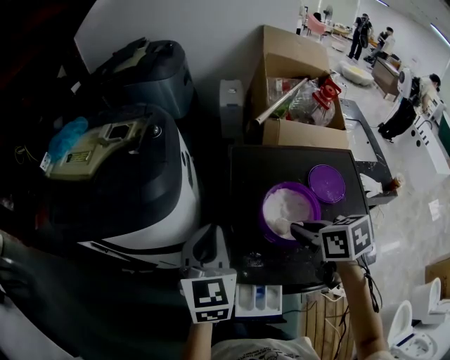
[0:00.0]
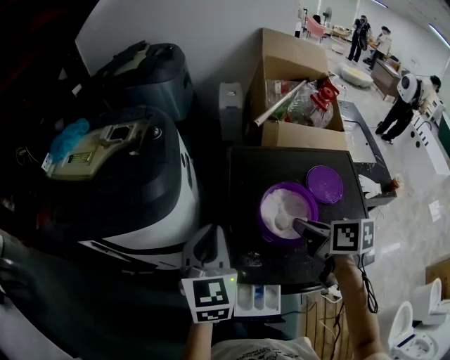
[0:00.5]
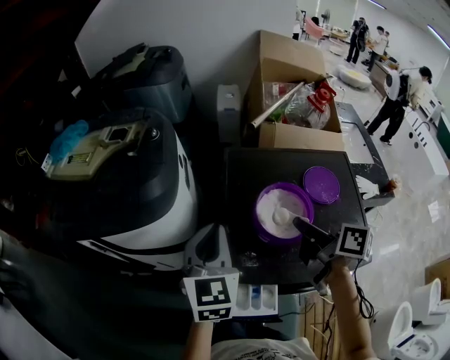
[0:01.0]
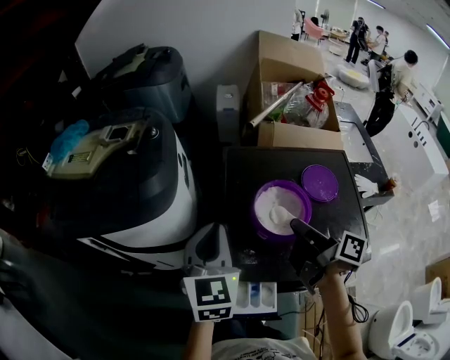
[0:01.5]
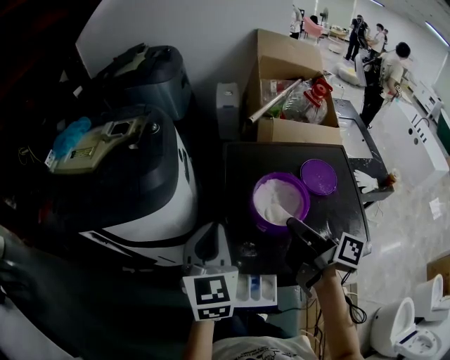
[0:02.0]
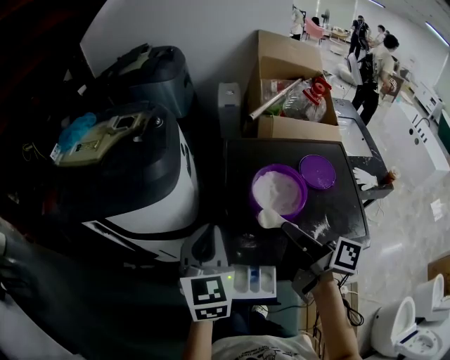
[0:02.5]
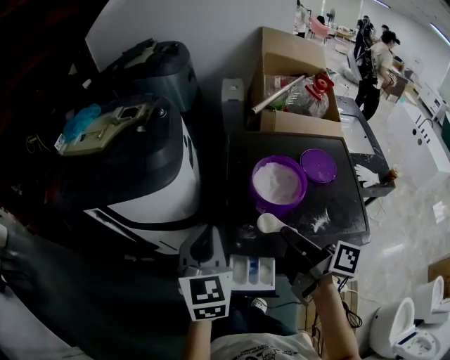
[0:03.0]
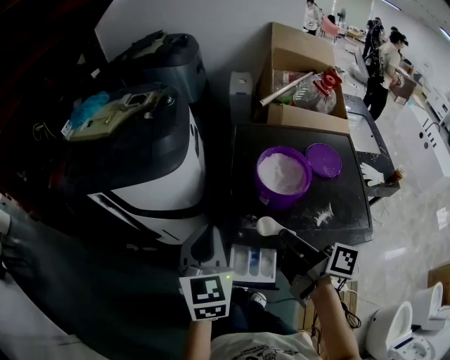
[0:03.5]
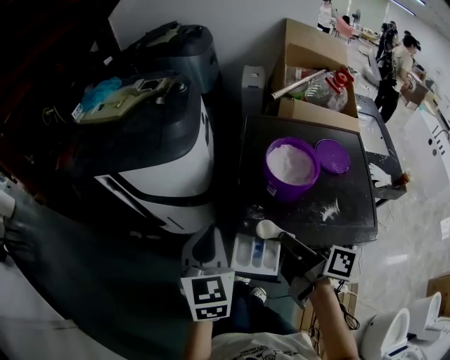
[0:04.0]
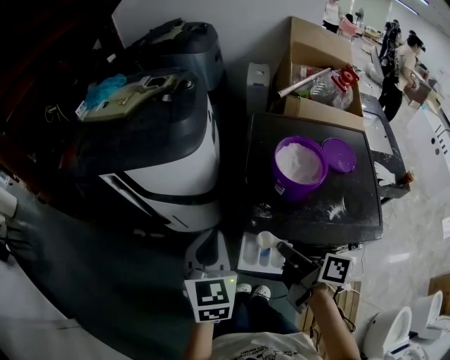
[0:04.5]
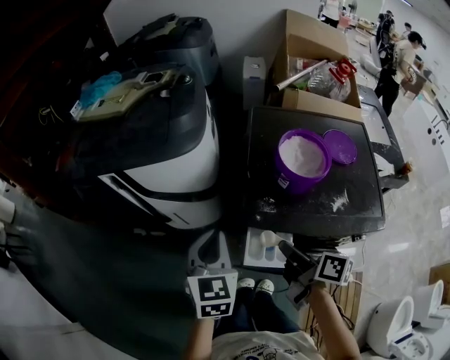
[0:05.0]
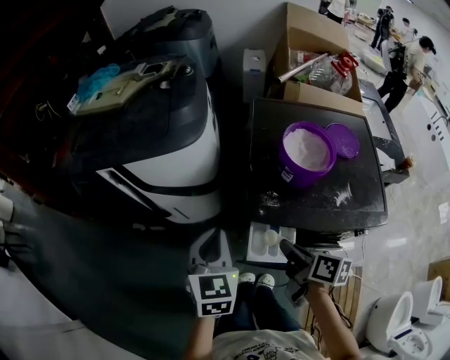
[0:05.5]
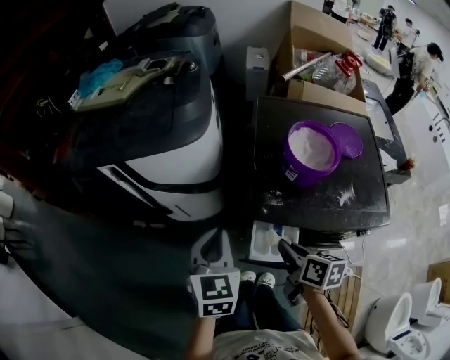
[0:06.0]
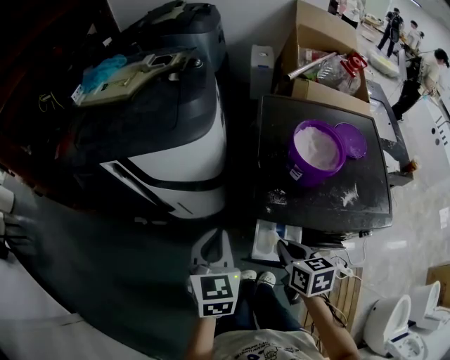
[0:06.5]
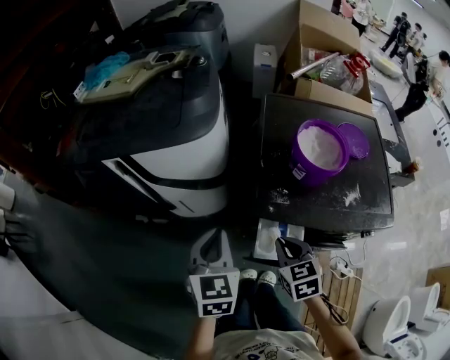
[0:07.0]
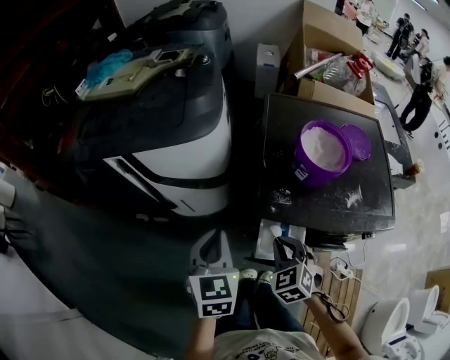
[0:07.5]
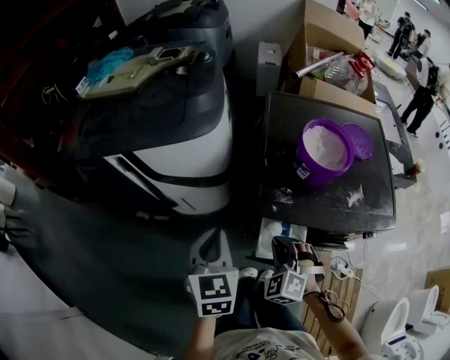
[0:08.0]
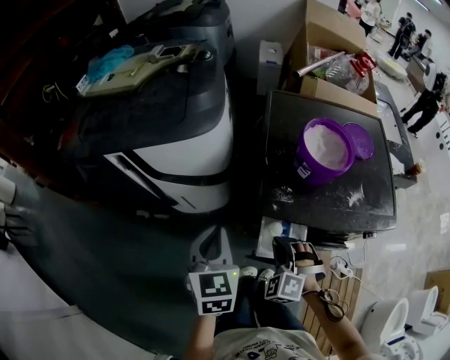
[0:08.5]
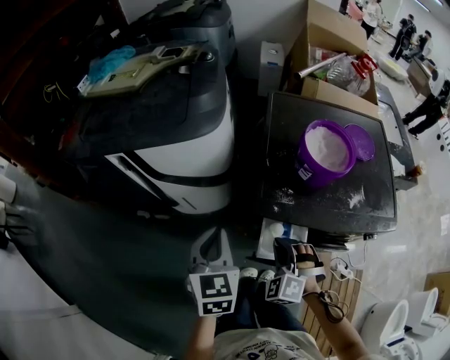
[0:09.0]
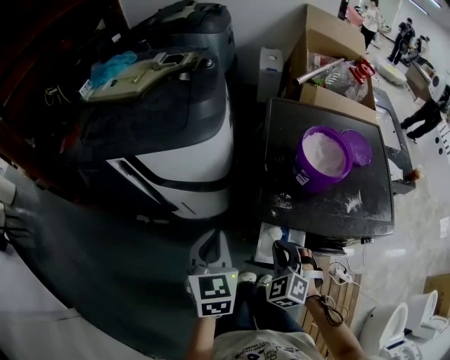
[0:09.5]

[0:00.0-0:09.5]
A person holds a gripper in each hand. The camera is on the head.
0:00.0 to 0:02.0: The right gripper ends up approximately 5 cm from where it was, and tips its fingers upward by approximately 40 degrees.
0:02.0 to 0:04.0: The right gripper goes some 15 cm backward, to the left and downward. The left gripper moves backward and to the left, roughly 15 cm.
0:04.0 to 0:05.5: The left gripper shifts approximately 5 cm downward, while the right gripper moves downward and to the left, about 10 cm, and changes its angle by approximately 20 degrees.
0:05.5 to 0:07.5: The right gripper travels downward by roughly 5 cm, and rotates around the line of its fingers by roughly 80 degrees, counterclockwise from behind.

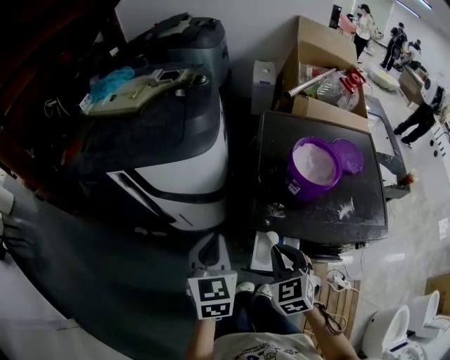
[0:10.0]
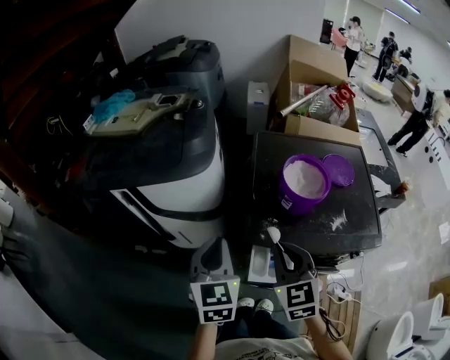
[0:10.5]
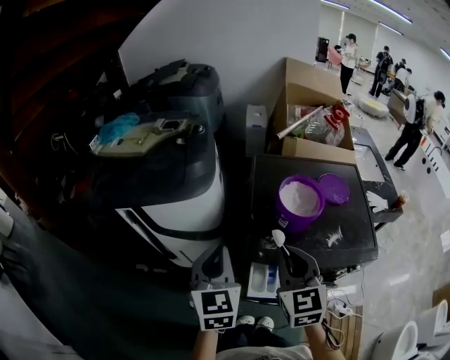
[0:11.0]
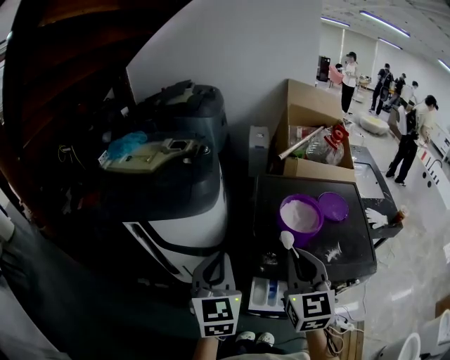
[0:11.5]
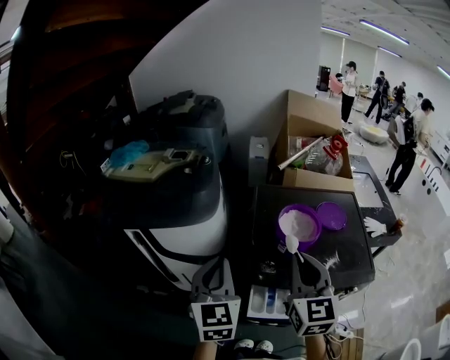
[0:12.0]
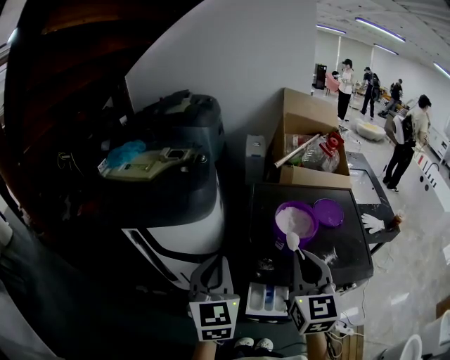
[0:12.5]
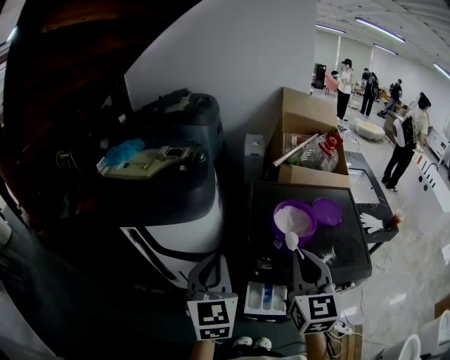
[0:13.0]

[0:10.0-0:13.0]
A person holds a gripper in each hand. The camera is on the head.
0:10.0 to 0:11.5: The right gripper shifts about 20 cm upward, and changes its angle by some 30 degrees, while the left gripper heads upward, covering some 10 cm.
0:11.5 to 0:13.0: The grippers make only small movements.

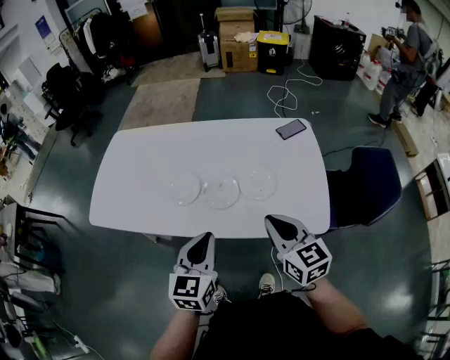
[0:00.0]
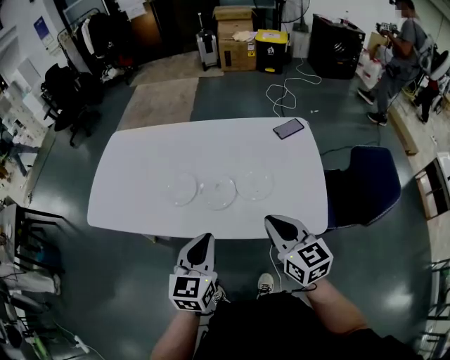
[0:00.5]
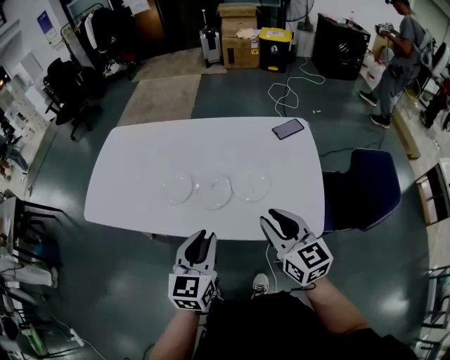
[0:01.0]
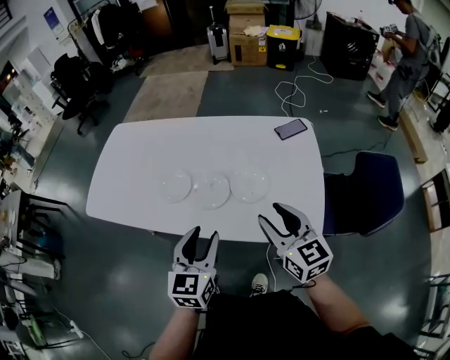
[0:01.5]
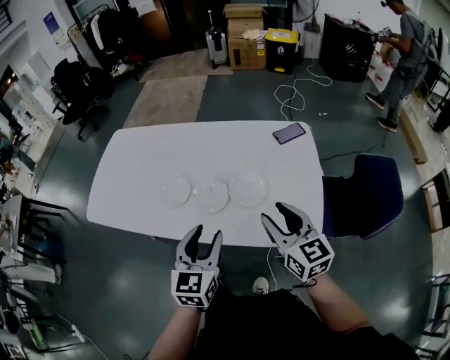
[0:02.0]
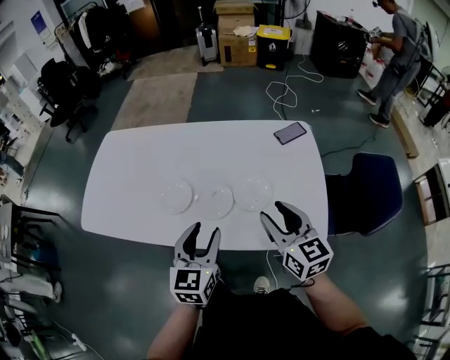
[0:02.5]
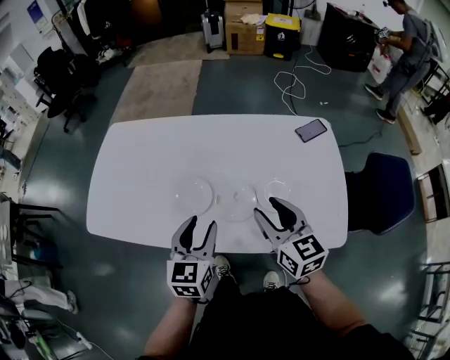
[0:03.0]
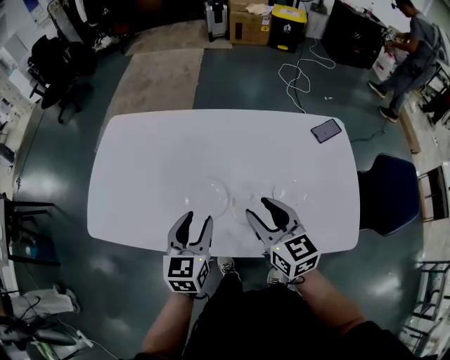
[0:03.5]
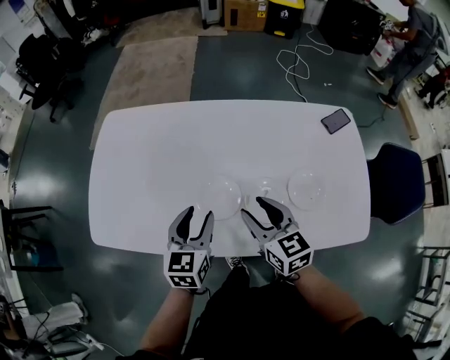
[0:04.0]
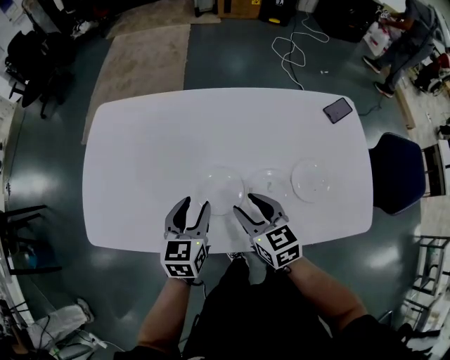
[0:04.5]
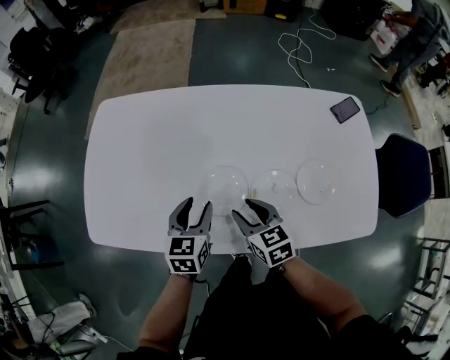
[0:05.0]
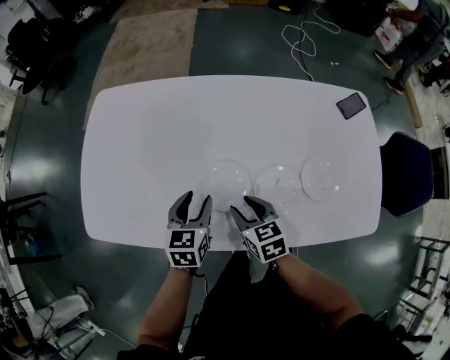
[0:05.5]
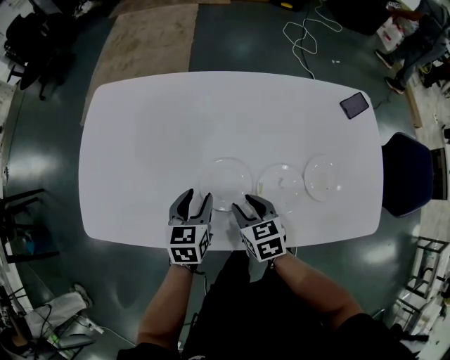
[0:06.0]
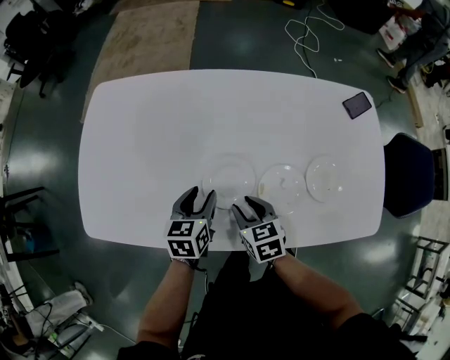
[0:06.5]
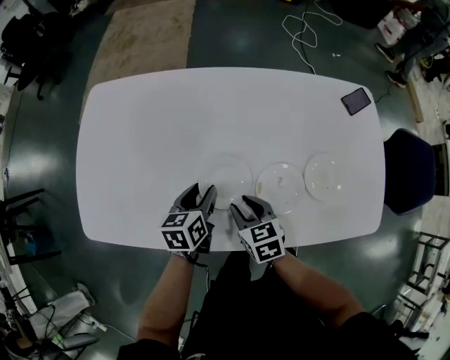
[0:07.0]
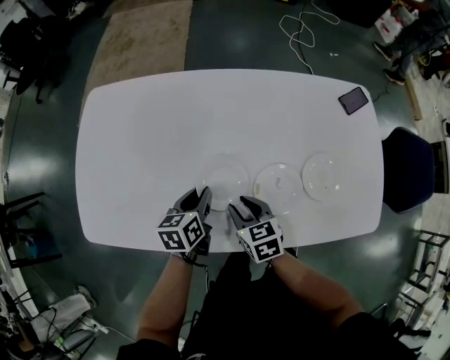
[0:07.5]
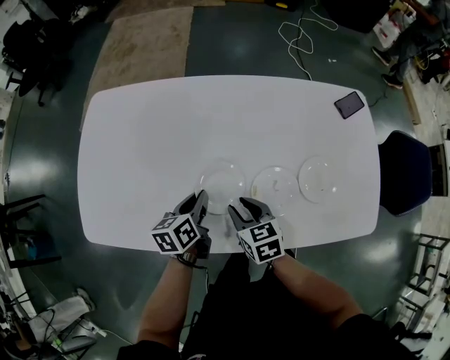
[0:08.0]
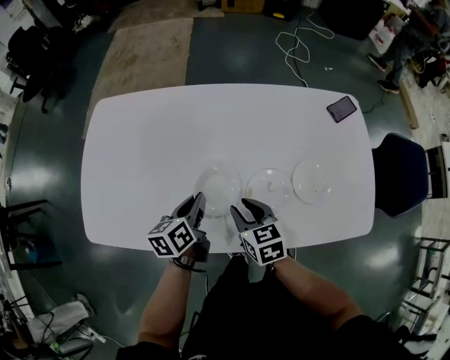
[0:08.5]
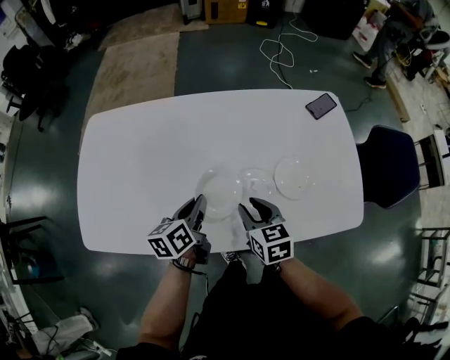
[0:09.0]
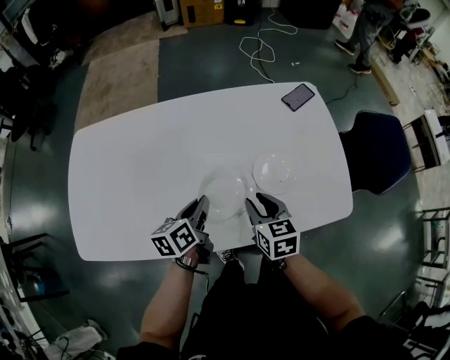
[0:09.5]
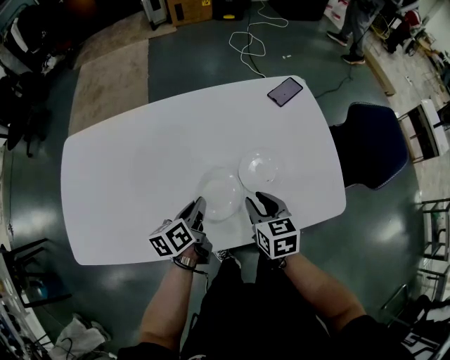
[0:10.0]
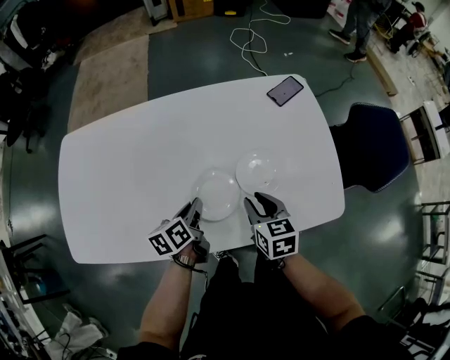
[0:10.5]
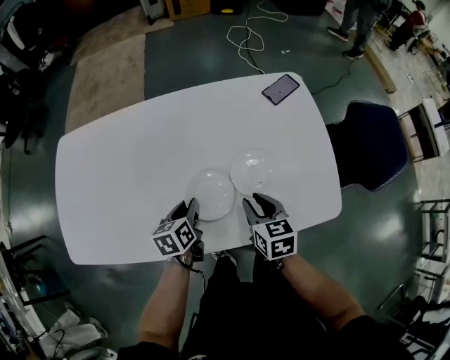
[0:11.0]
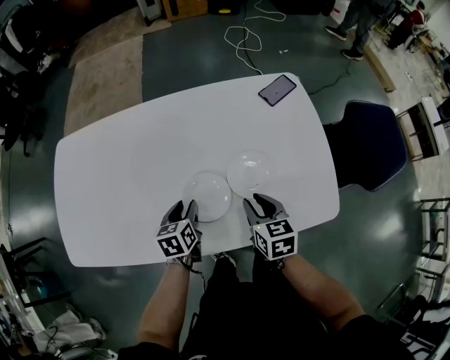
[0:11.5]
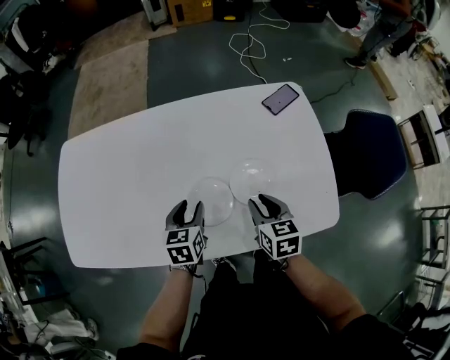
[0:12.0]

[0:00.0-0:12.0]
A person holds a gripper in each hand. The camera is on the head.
0:00.0 to 0:02.0: Both grippers move to the right, roughly 10 cm. The left gripper opens its fingers. Meanwhile the right gripper opens its fingers.
0:02.0 to 0:04.0: The two grippers go some 35 cm to the left and forward.
0:04.0 to 0:06.0: Both grippers move downward, some 15 cm. The right gripper turns by roughly 20 degrees.
0:06.0 to 0:08.0: The left gripper turns by roughly 30 degrees, and closes its fingers.
0:08.0 to 0:10.0: The two grippers go about 20 cm to the right. The right gripper turns by about 20 degrees.
0:10.0 to 0:12.0: The right gripper moves approximately 5 cm. Meanwhile the left gripper swivels about 30 degrees, and opens up.

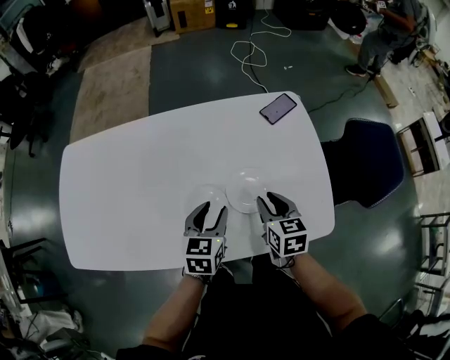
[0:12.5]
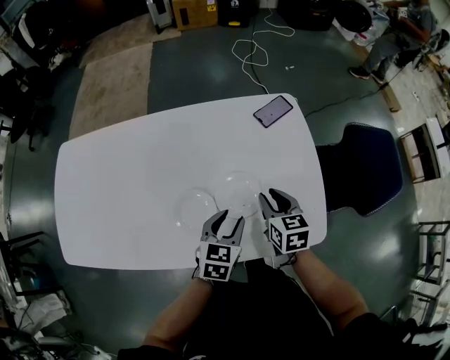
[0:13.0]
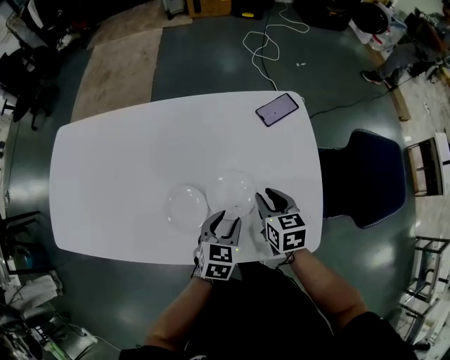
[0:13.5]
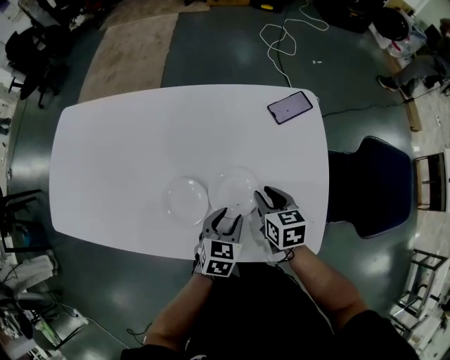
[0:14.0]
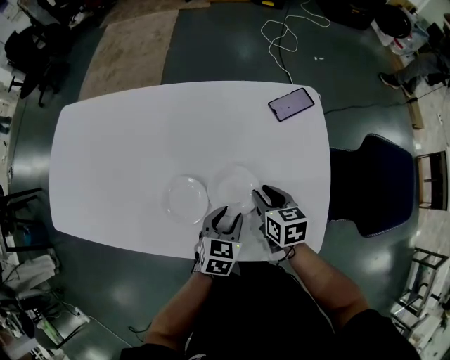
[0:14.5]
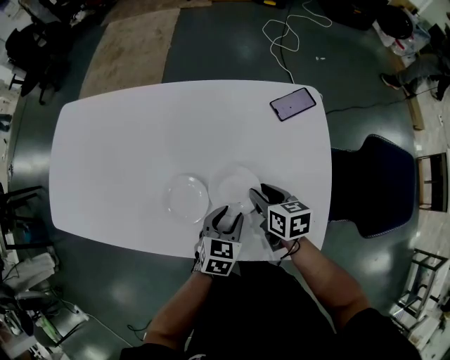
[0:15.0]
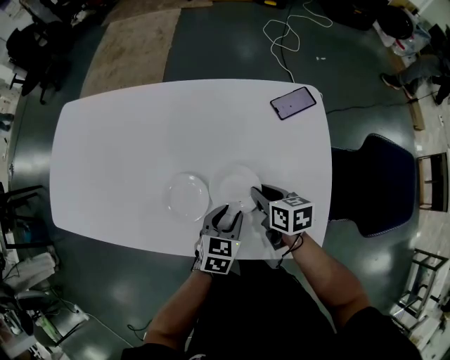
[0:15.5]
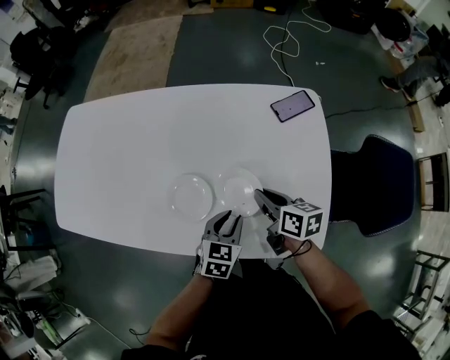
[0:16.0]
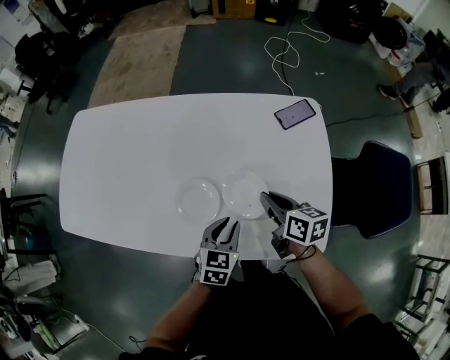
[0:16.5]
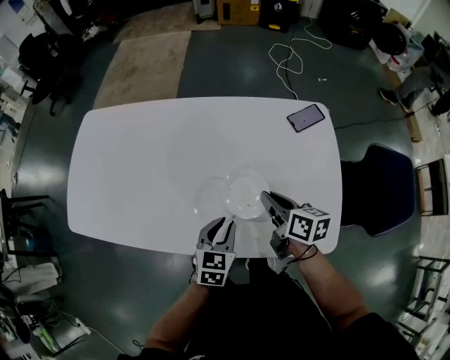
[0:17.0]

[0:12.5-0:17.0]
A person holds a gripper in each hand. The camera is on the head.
0:12.5 to 0:14.5: The right gripper moves downward and forward, some 10 cm; the left gripper travels to the right and downward by approximately 15 cm.
0:14.5 to 0:17.0: The right gripper is displaced upward and to the left by about 10 cm, rotates some 20 degrees, and closes up. The left gripper moves to the left and upward, about 15 cm.
